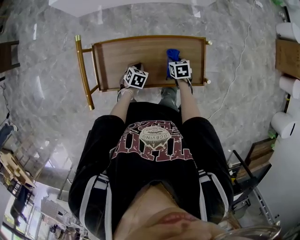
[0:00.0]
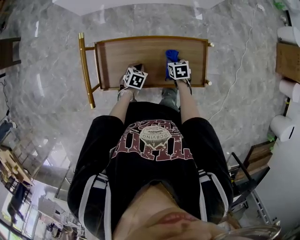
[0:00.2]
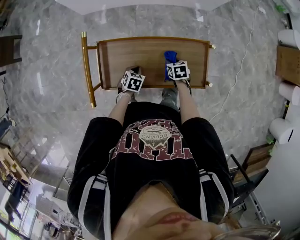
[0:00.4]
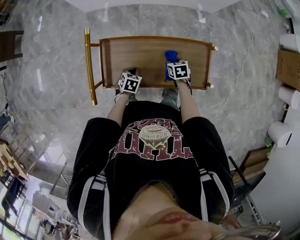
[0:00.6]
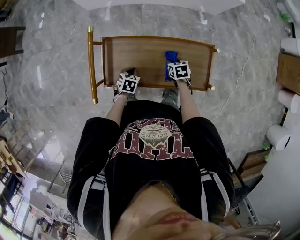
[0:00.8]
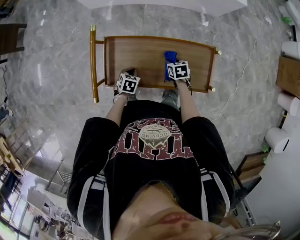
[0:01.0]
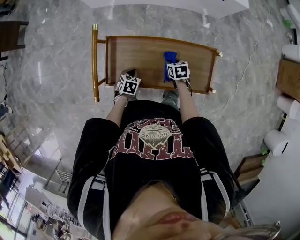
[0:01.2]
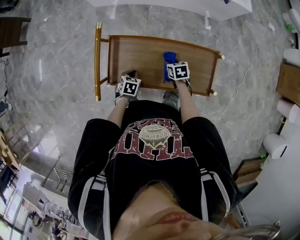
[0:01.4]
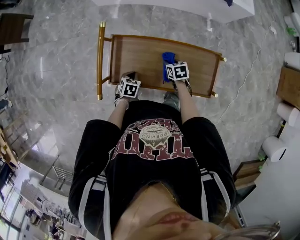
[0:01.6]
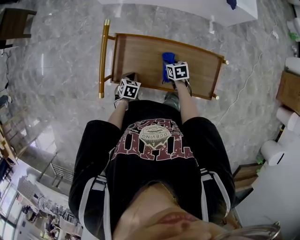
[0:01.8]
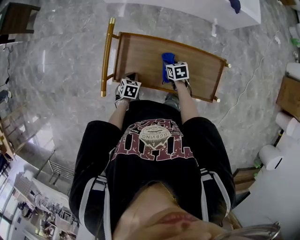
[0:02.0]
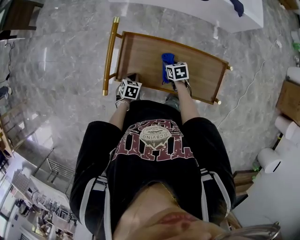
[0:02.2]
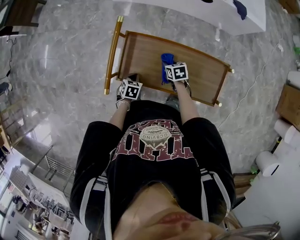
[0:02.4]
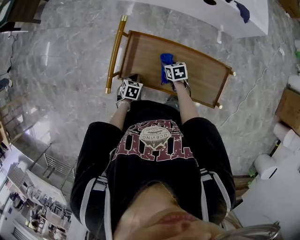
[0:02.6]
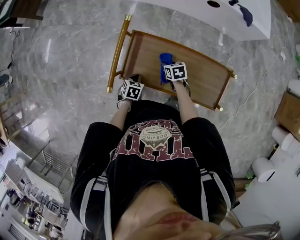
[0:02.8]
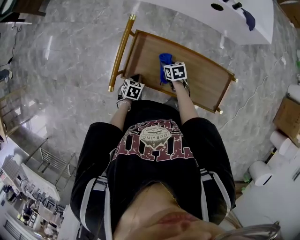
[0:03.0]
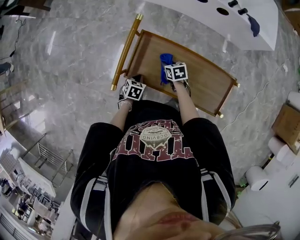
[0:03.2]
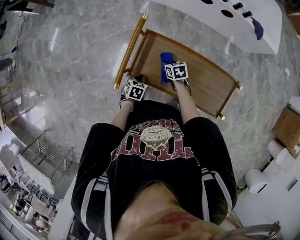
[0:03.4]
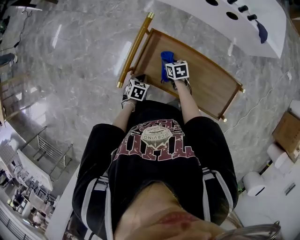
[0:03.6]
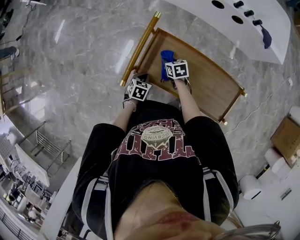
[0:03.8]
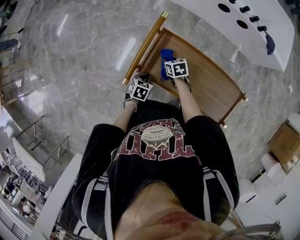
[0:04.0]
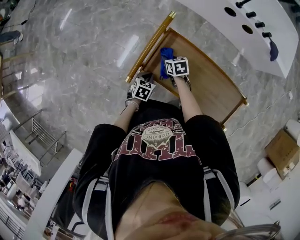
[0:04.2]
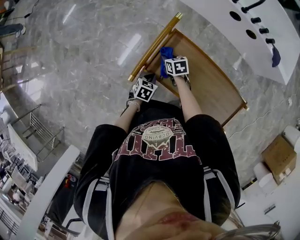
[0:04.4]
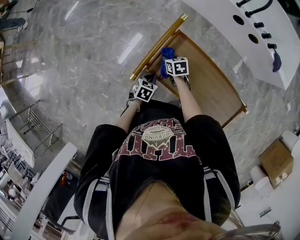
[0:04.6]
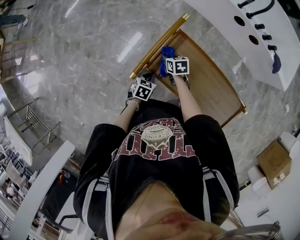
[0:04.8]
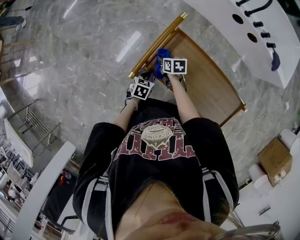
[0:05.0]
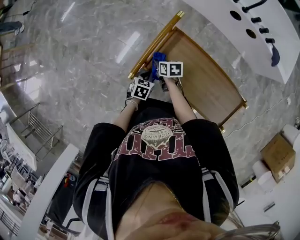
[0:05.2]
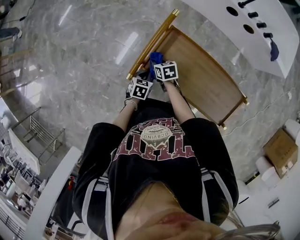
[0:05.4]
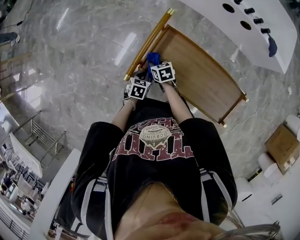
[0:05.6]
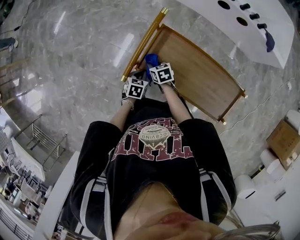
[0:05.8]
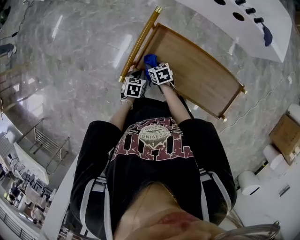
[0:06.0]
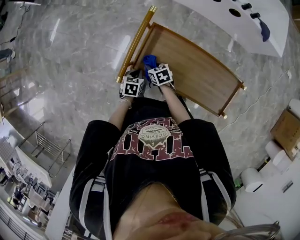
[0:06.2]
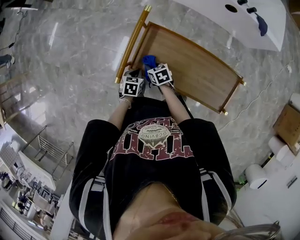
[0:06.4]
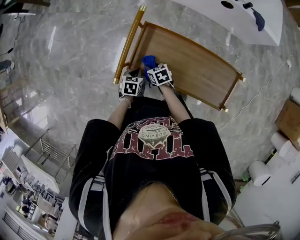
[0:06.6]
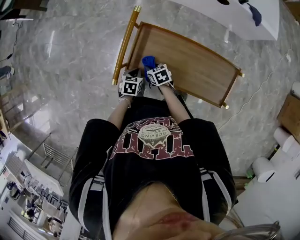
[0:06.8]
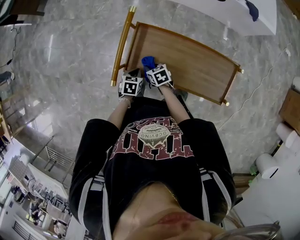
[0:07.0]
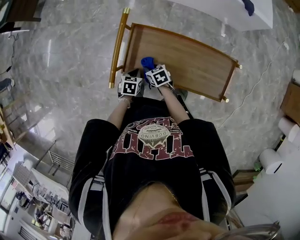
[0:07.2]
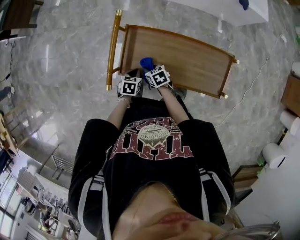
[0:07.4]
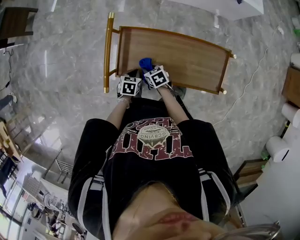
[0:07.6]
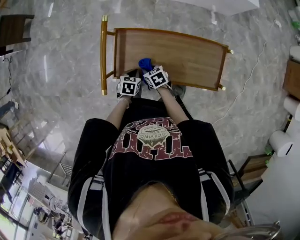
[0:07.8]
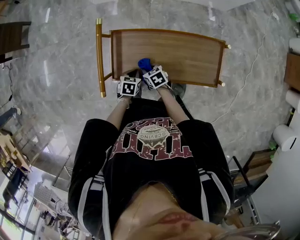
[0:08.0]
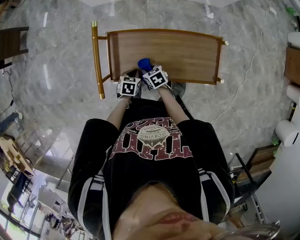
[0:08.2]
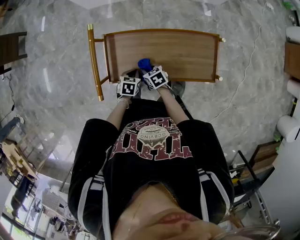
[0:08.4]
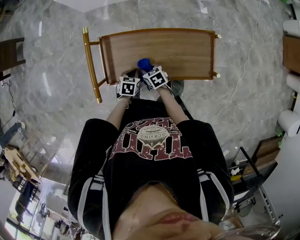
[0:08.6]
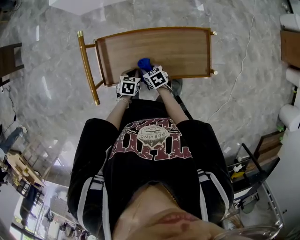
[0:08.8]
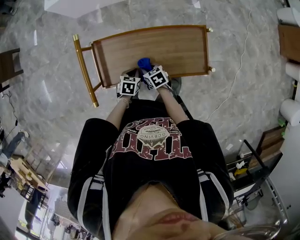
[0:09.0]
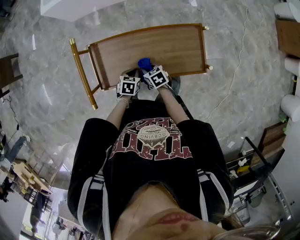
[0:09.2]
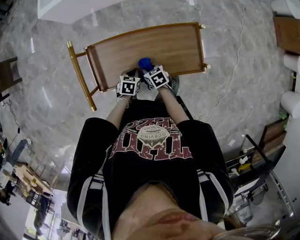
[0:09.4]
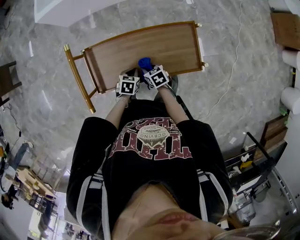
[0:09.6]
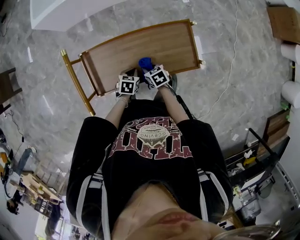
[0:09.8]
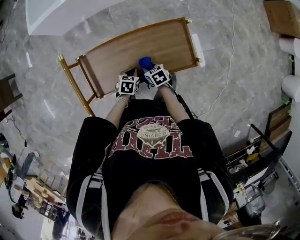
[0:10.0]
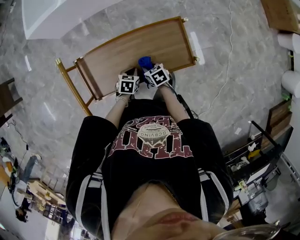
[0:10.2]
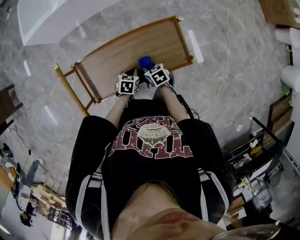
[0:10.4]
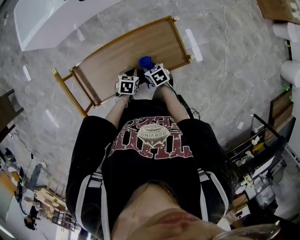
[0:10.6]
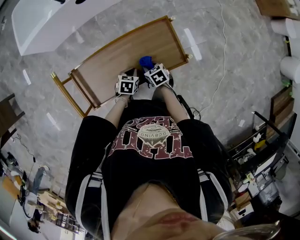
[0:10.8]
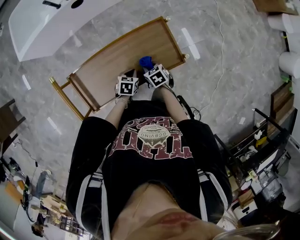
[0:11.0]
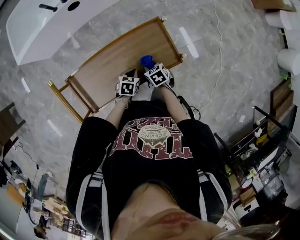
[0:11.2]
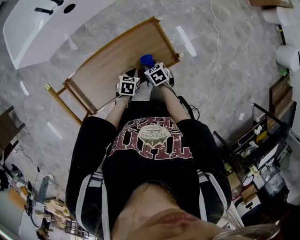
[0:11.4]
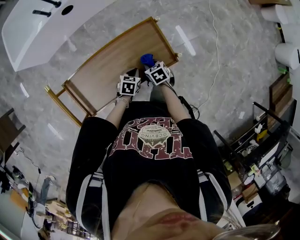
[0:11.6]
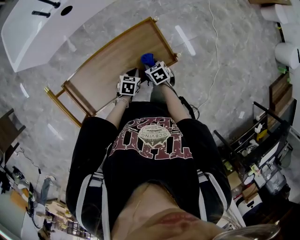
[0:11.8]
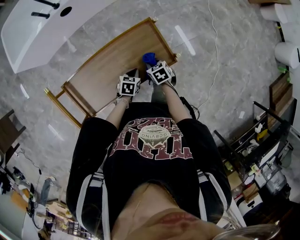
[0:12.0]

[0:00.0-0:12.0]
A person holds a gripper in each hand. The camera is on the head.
0:00.0 to 0:01.6: Both grippers move to the left, some 10 cm.
0:01.6 to 0:03.0: The left gripper moves to the left, approximately 5 cm. The right gripper heads to the left, covering about 10 cm.
0:03.0 to 0:04.4: The left gripper goes roughly 5 cm to the left; the right gripper goes some 15 cm to the left.
0:04.4 to 0:06.0: The right gripper heads backward, covering some 5 cm.
0:06.0 to 0:07.6: The right gripper travels to the right and backward by approximately 10 cm. Meanwhile the left gripper shifts some 10 cm to the right.
0:07.6 to 0:09.0: Both grippers travel together to the right, approximately 10 cm.
0:09.0 to 0:10.4: The grippers both shift to the right by roughly 10 cm.
0:10.4 to 0:12.0: Both grippers move to the right, approximately 10 cm.

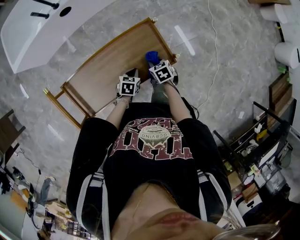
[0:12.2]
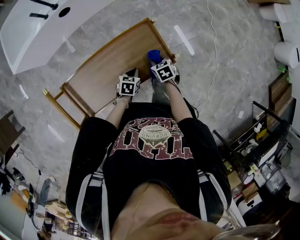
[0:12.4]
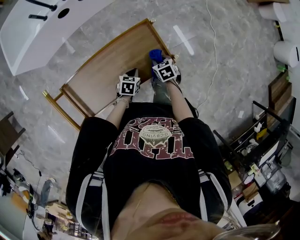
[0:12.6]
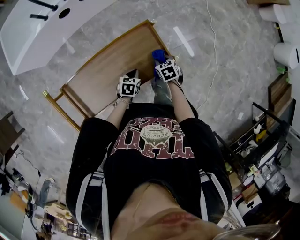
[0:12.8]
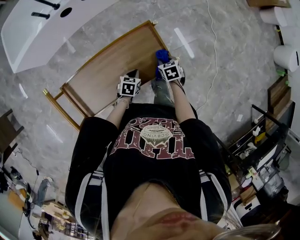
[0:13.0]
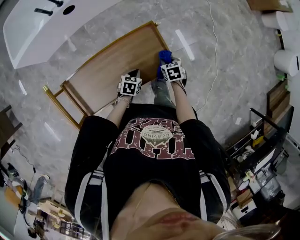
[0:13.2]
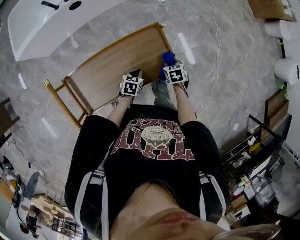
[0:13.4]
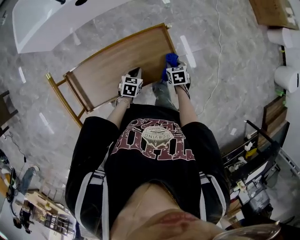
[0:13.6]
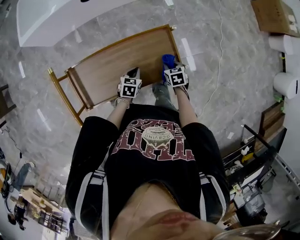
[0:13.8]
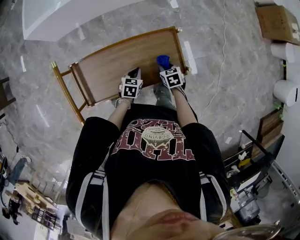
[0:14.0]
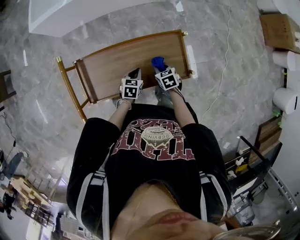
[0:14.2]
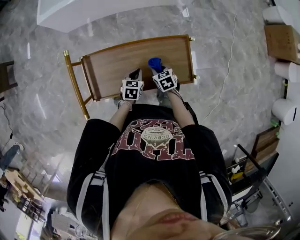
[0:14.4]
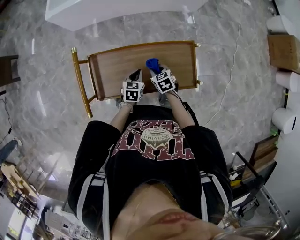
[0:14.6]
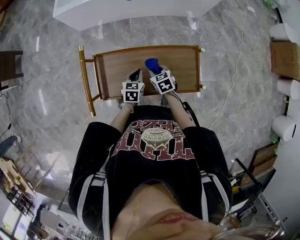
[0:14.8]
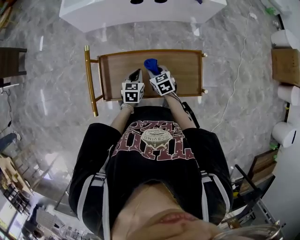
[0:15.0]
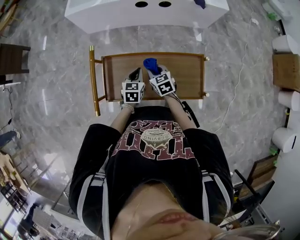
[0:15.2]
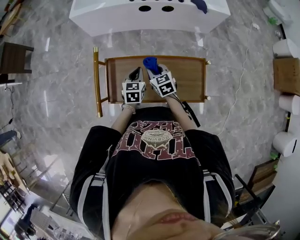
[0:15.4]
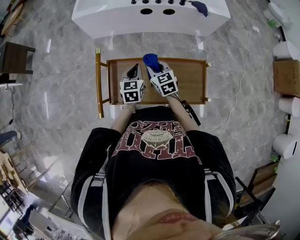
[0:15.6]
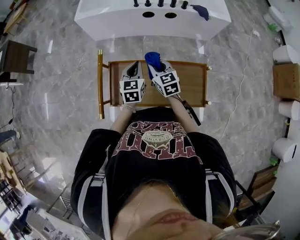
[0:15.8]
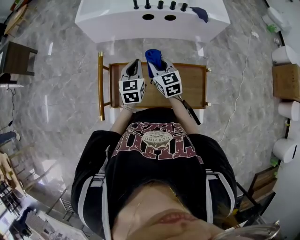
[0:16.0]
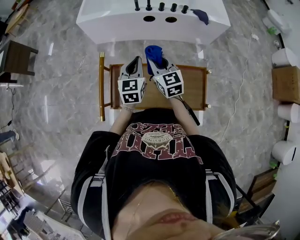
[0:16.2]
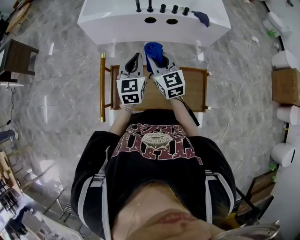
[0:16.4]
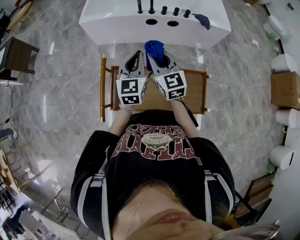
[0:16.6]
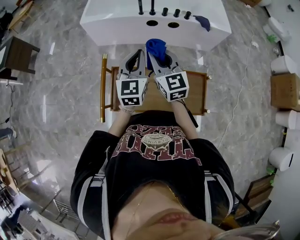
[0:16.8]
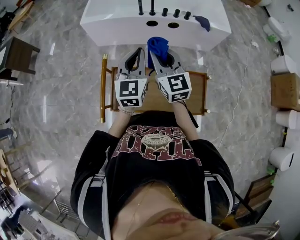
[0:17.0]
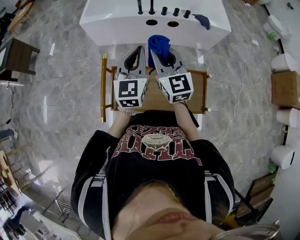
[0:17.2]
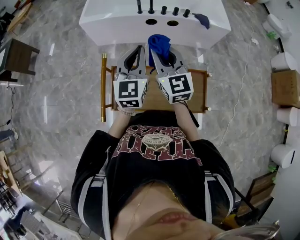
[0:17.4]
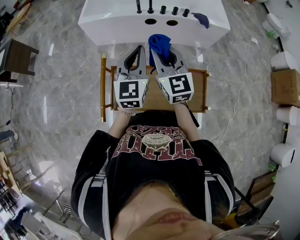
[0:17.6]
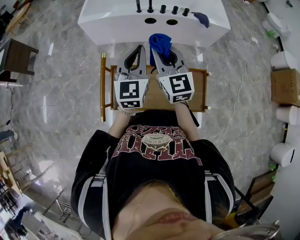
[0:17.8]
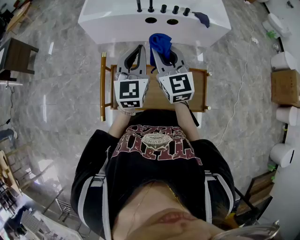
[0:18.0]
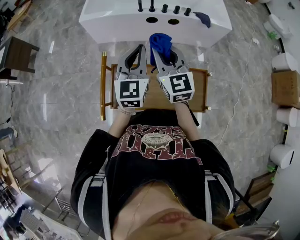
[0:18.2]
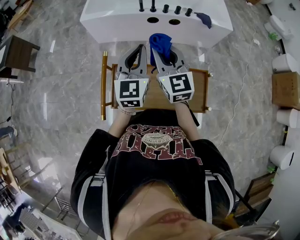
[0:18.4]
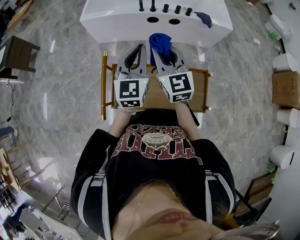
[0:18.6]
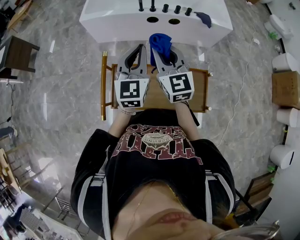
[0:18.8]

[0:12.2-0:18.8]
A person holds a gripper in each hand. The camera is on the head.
0:13.8 to 0:15.4: The right gripper changes place by some 35 cm, and turns by roughly 40 degrees. The left gripper shifts by some 25 cm, and turns by some 30 degrees.
0:15.4 to 0:17.2: The grippers both shift upward by approximately 25 cm. The right gripper angles its fingers upward, by some 30 degrees. The left gripper tips its fingers upward by some 30 degrees.
0:17.2 to 0:18.8: Both grippers stay about where they are.

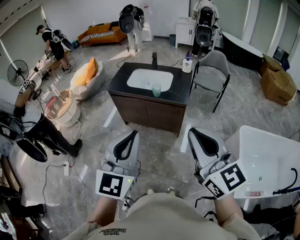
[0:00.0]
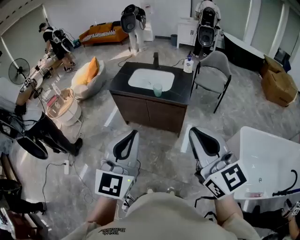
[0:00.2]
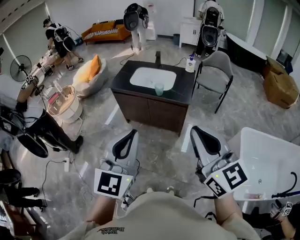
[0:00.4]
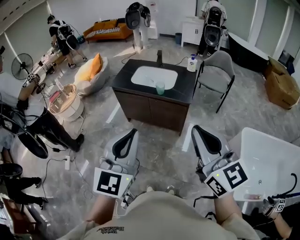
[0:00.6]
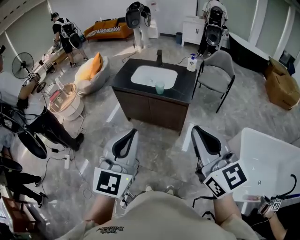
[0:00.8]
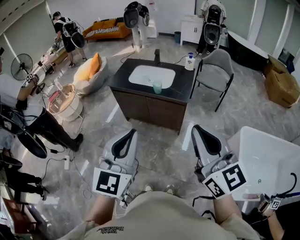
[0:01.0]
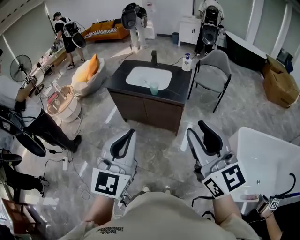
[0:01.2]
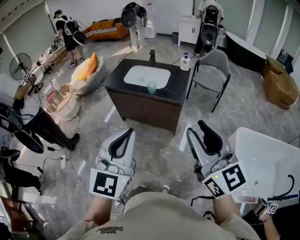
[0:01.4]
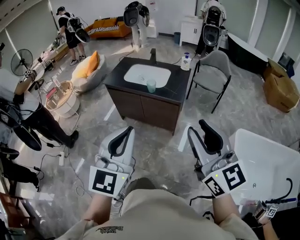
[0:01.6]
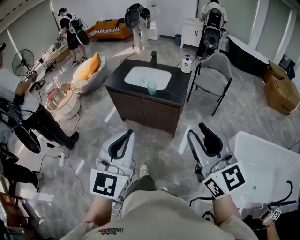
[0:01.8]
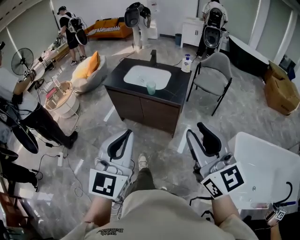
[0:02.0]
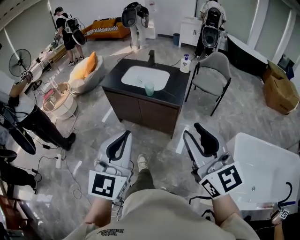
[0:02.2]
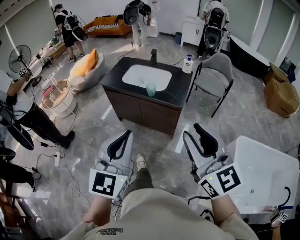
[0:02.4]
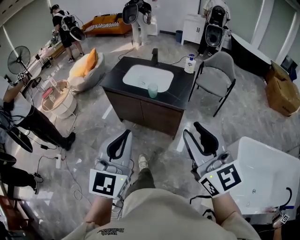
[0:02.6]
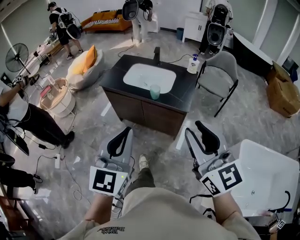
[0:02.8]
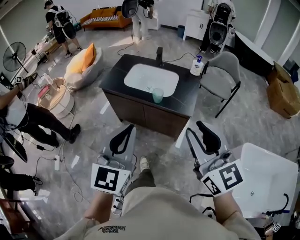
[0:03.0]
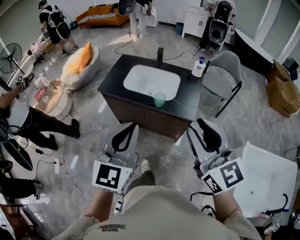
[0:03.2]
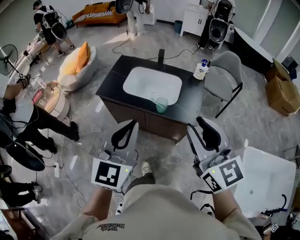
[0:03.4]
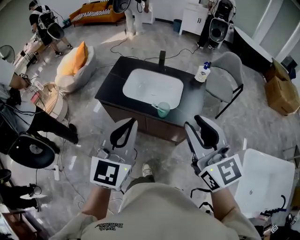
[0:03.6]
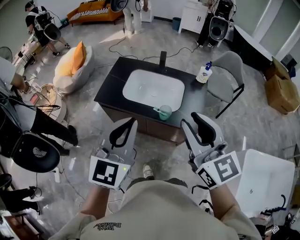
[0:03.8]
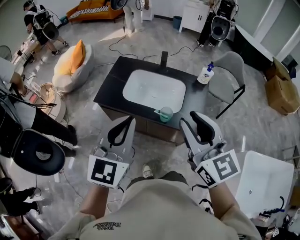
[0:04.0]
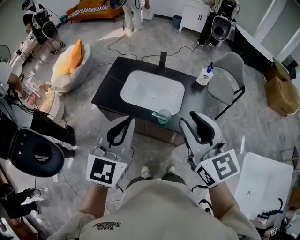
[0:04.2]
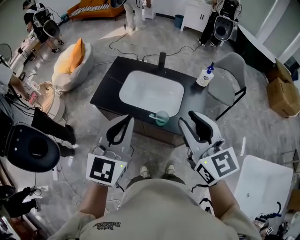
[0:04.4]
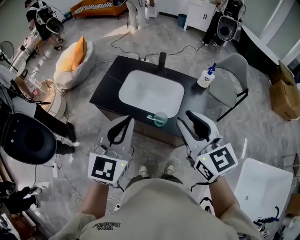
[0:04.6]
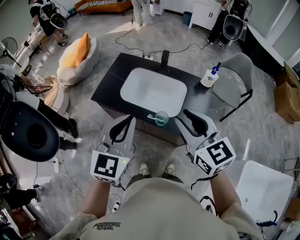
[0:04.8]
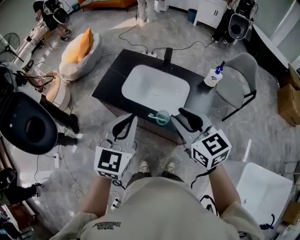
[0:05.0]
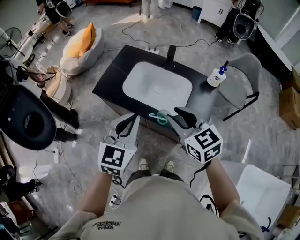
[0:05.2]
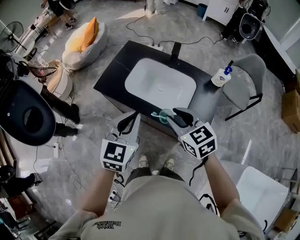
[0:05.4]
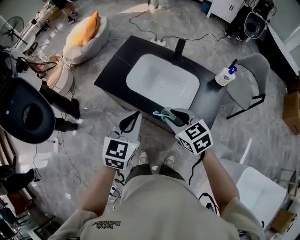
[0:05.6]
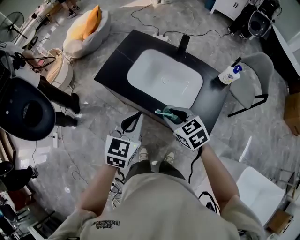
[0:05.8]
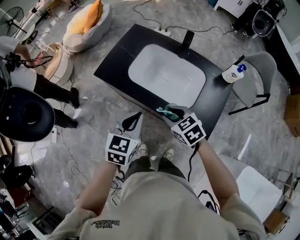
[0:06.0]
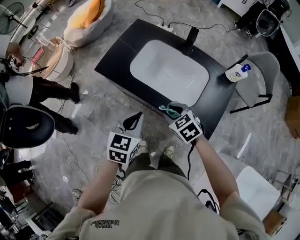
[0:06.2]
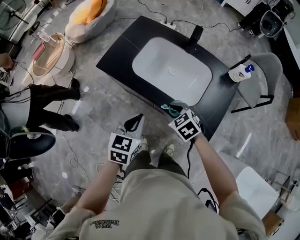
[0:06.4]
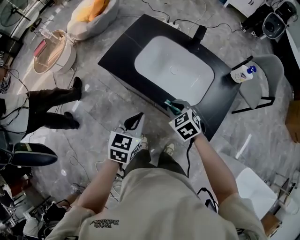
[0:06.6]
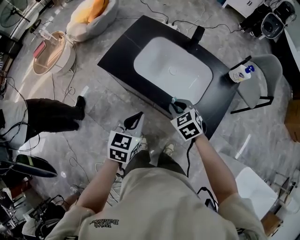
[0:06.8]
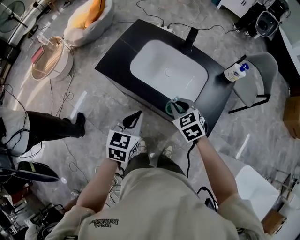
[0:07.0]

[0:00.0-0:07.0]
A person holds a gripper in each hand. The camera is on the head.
0:00.0 to 0:01.4: Both grippers travel together to the right, about 5 cm. The right gripper opens up.
0:01.4 to 0:02.8: The two grippers go approximately 15 cm forward.
0:02.8 to 0:04.2: The two grippers go roughly 30 cm forward.
0:04.2 to 0:05.6: The right gripper moves downward and forward, some 25 cm, and angles its fingers downward, by roughly 30 degrees. The left gripper heads downward and forward, covering approximately 15 cm, and turns by some 20 degrees.
0:05.6 to 0:07.0: Both grippers move downward, about 10 cm. The right gripper closes up.
